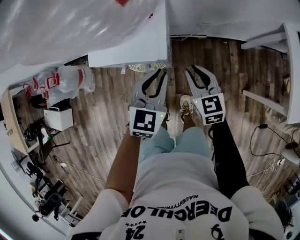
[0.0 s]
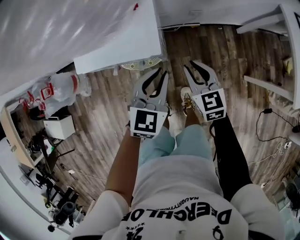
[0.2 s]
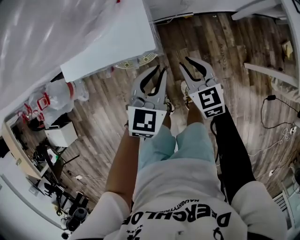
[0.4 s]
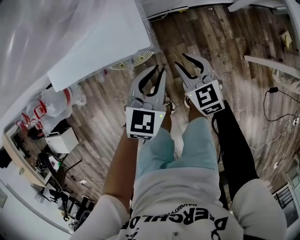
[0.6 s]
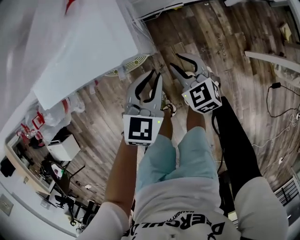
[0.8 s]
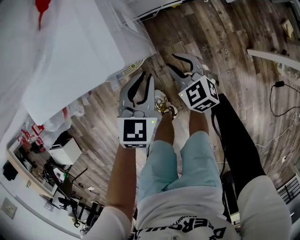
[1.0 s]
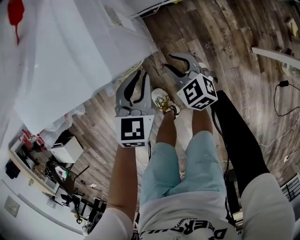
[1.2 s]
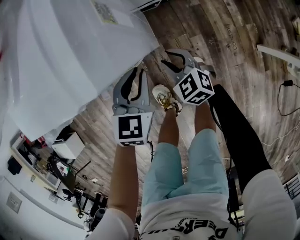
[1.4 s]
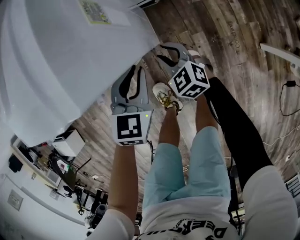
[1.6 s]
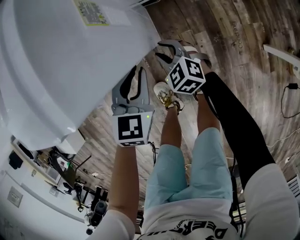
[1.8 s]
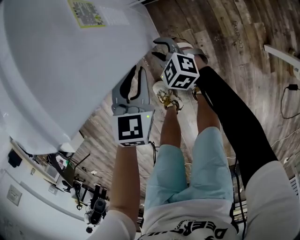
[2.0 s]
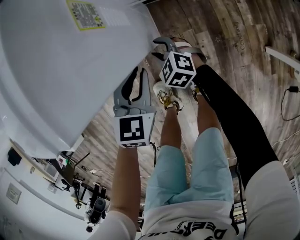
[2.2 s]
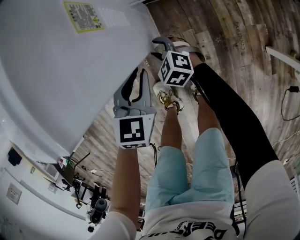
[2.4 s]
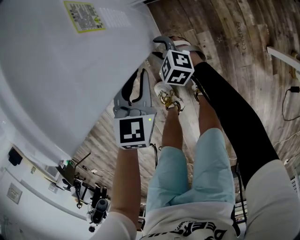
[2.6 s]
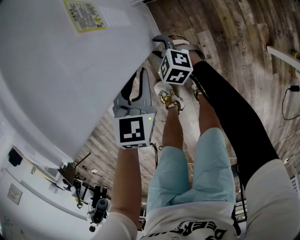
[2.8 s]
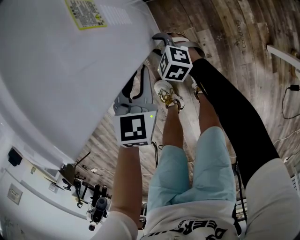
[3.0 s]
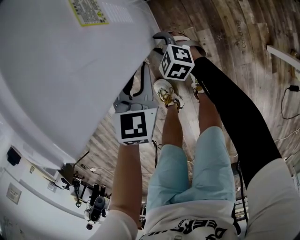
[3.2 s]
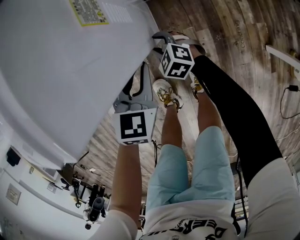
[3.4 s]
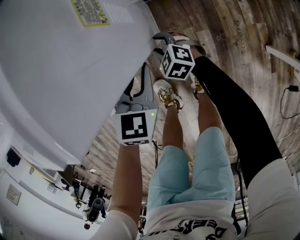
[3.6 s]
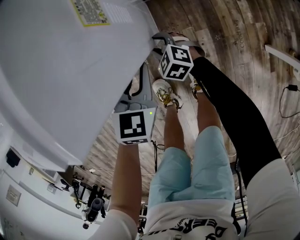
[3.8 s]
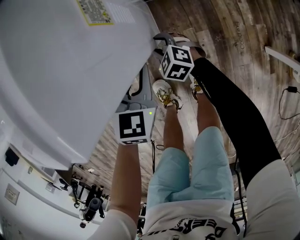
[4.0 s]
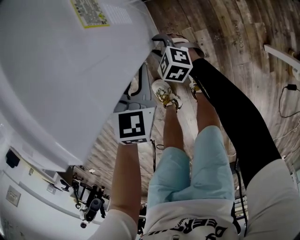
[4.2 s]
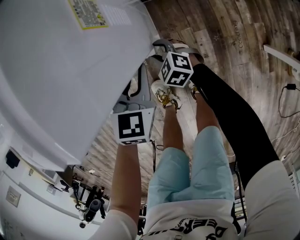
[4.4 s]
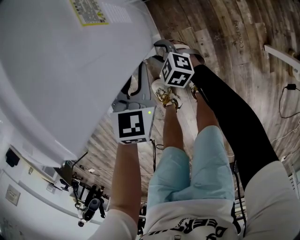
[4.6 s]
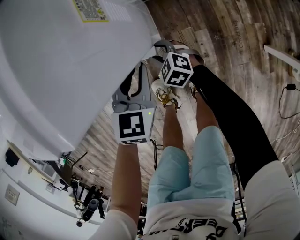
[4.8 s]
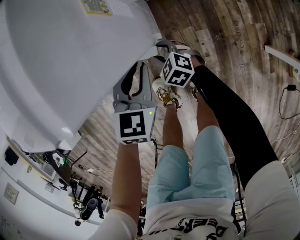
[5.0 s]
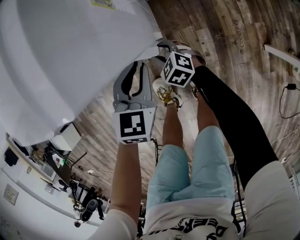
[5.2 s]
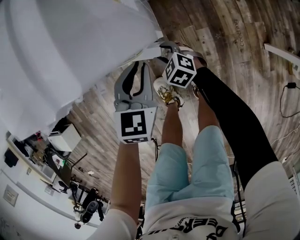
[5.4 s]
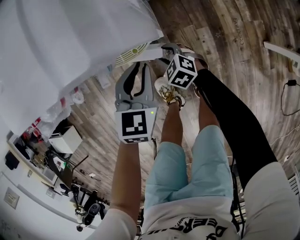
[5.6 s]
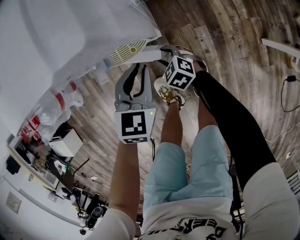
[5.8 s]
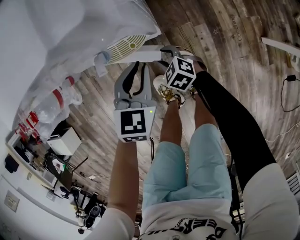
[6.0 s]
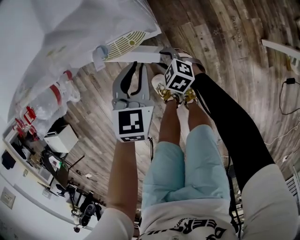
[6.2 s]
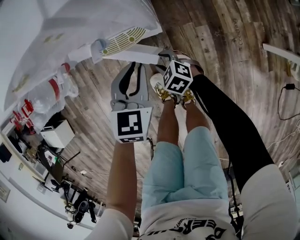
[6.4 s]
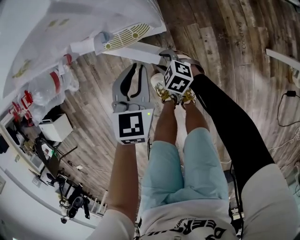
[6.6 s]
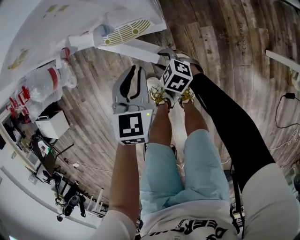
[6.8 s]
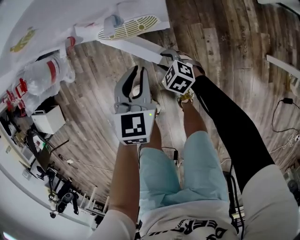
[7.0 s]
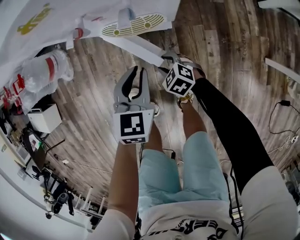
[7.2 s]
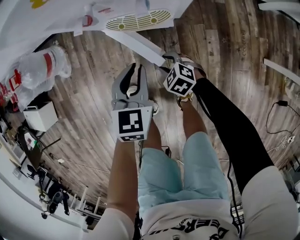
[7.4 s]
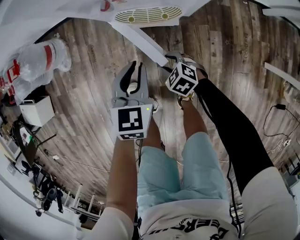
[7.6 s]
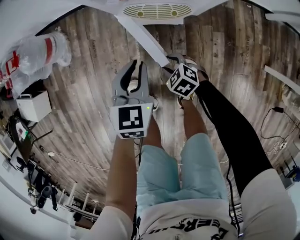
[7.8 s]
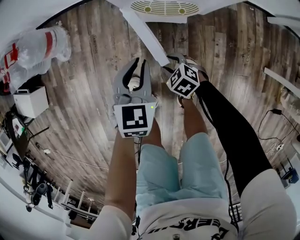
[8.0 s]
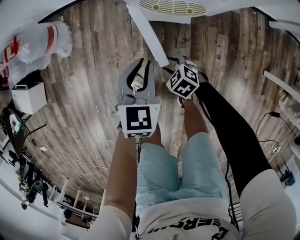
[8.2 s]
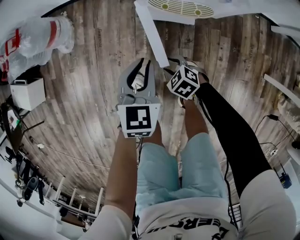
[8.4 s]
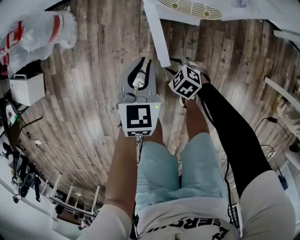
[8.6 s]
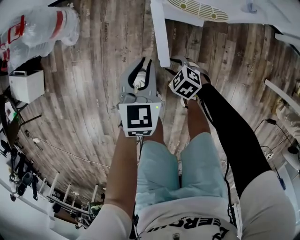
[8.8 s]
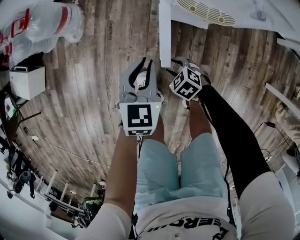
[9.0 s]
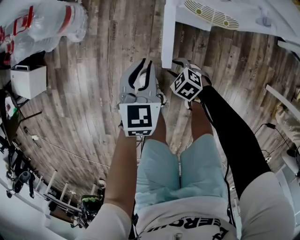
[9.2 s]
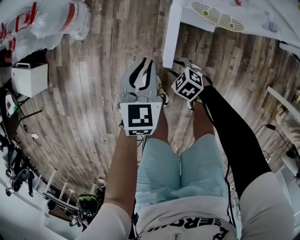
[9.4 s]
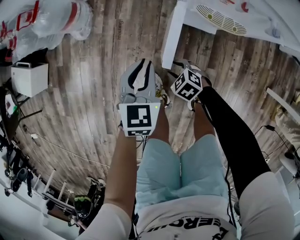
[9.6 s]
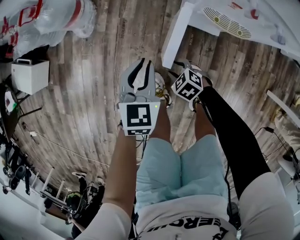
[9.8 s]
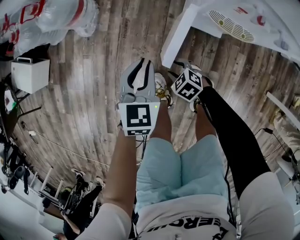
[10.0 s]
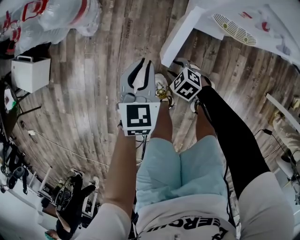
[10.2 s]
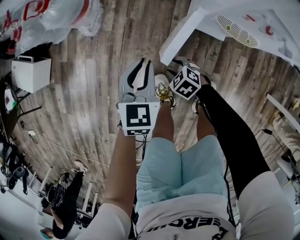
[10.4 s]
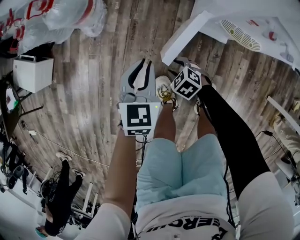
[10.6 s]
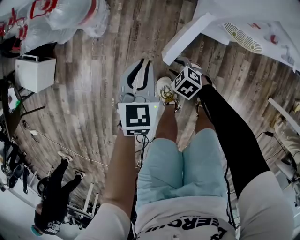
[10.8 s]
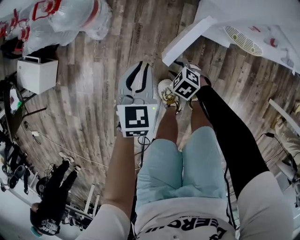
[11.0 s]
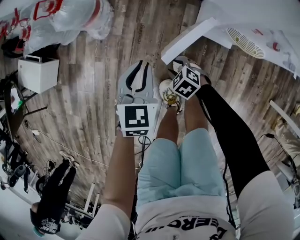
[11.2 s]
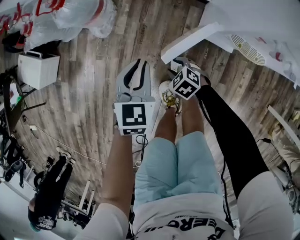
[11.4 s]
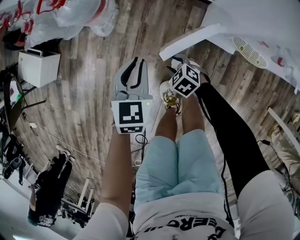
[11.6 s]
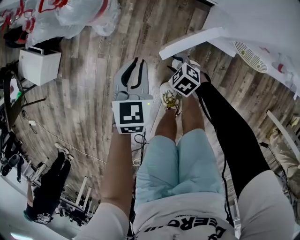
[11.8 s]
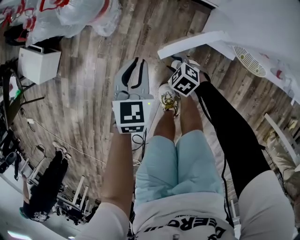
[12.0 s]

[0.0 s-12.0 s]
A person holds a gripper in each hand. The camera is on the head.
0.0 to 1.6 s: The grippers both shift downward by roughly 30 cm. The right gripper swivels some 20 degrees.
1.6 to 3.0 s: The right gripper goes some 10 cm downward.
3.0 to 4.4 s: The grippers stay close to where they were, moving slightly.
4.4 to 6.0 s: The grippers both shift backward by some 5 cm.
6.0 to 7.6 s: The left gripper shifts about 15 cm to the left. Meanwhile the right gripper shifts roughly 10 cm to the left and backward.
7.6 to 9.0 s: The grippers both shift to the left by approximately 15 cm.
9.0 to 10.4 s: Both grippers travel together to the left and forward, roughly 15 cm.
10.4 to 12.0 s: The two grippers go about 10 cm forward.

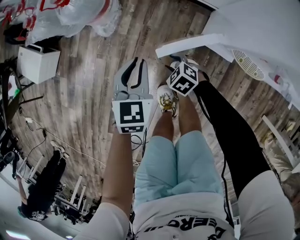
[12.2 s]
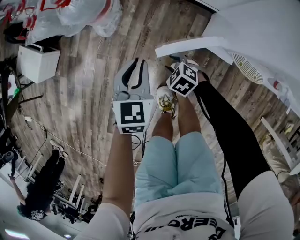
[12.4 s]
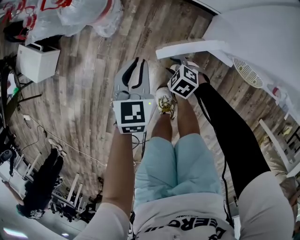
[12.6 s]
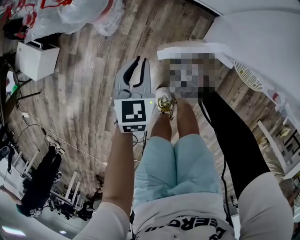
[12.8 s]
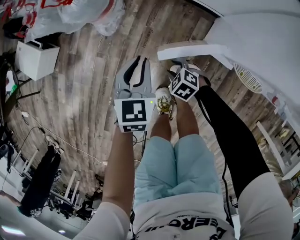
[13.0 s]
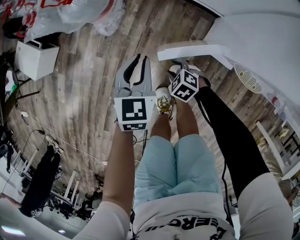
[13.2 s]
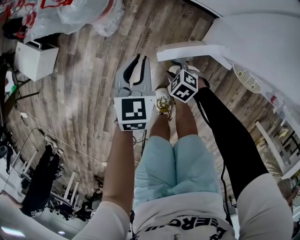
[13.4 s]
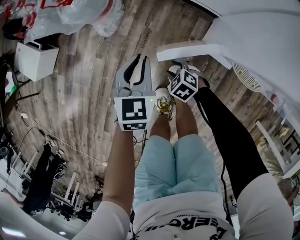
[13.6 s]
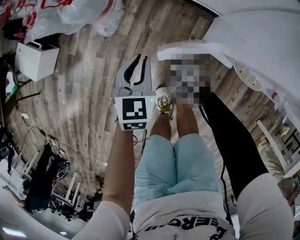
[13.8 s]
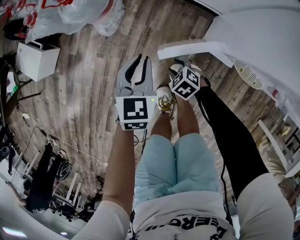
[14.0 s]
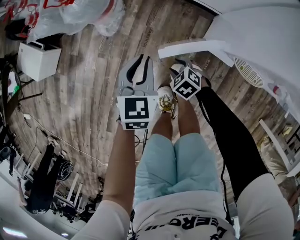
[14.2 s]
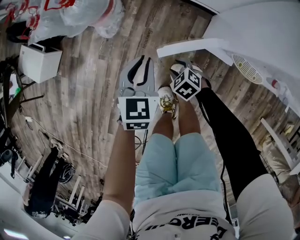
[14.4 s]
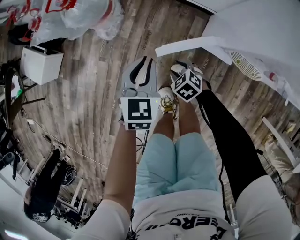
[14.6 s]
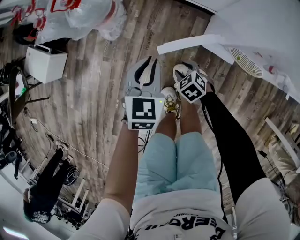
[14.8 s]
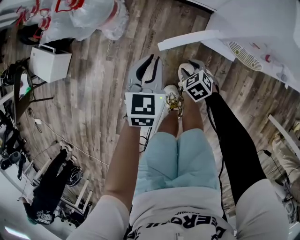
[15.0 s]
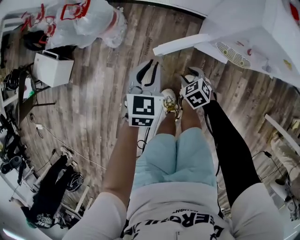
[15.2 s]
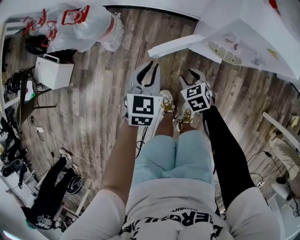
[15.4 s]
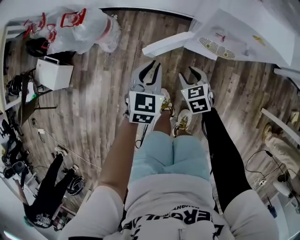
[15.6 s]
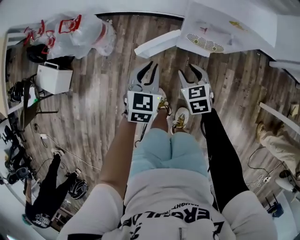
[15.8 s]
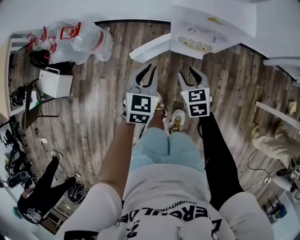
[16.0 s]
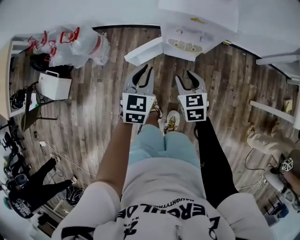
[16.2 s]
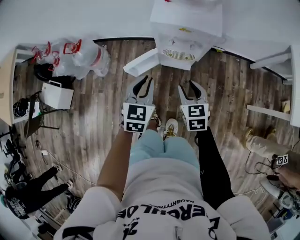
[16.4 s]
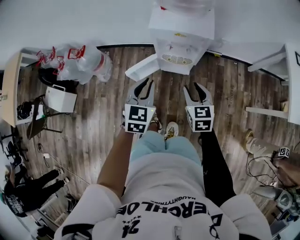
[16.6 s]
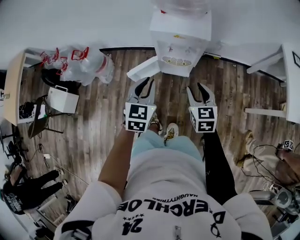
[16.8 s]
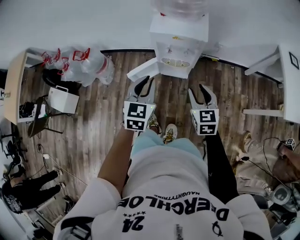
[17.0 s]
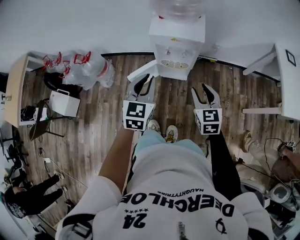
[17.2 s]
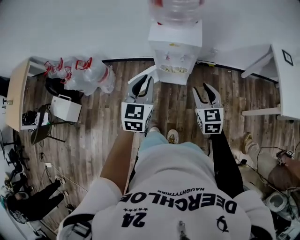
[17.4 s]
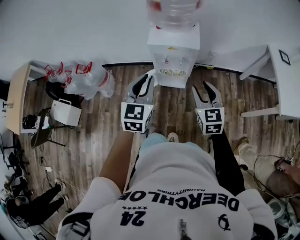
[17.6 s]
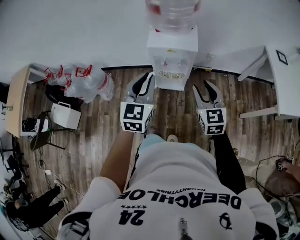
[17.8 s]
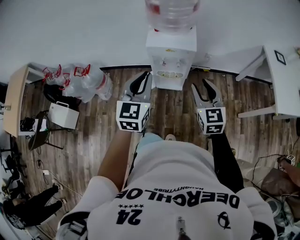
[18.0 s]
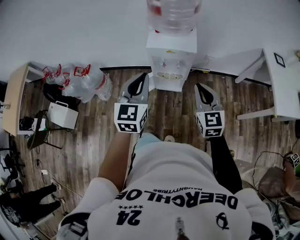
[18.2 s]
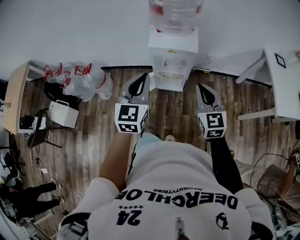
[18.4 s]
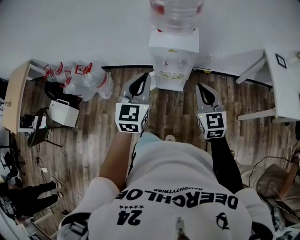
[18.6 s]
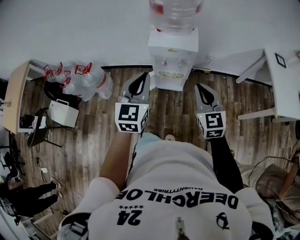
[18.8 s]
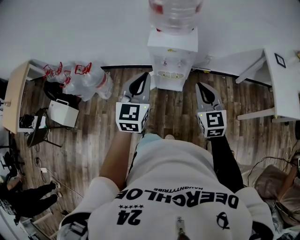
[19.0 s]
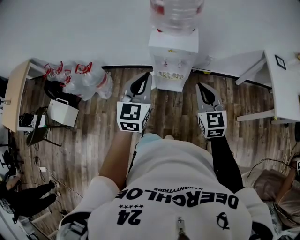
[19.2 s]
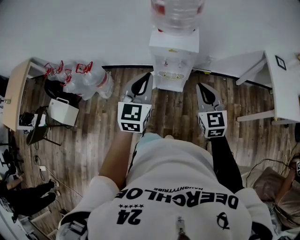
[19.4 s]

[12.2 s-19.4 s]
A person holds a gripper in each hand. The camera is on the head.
12.2 to 13.6 s: There are only small adjustments of the grippers.
13.6 to 15.0 s: Both grippers travel together backward, roughly 5 cm. The right gripper changes its angle by about 20 degrees.
15.0 to 16.6 s: The left gripper shifts by roughly 35 cm; the right gripper heads upward, covering roughly 40 cm, and angles its fingers upward, by roughly 30 degrees.
16.6 to 18.0 s: Both grippers move upward, roughly 20 cm. The right gripper changes its angle by approximately 20 degrees.
18.0 to 19.4 s: The right gripper closes.

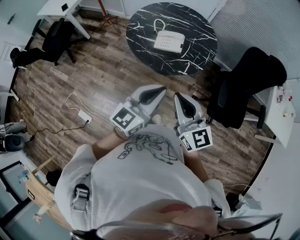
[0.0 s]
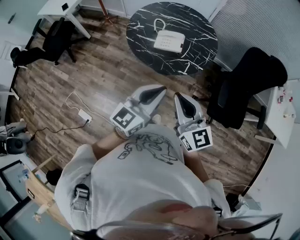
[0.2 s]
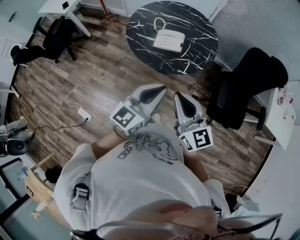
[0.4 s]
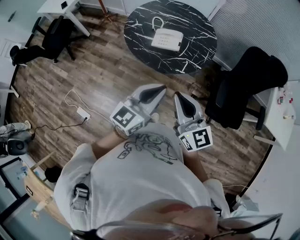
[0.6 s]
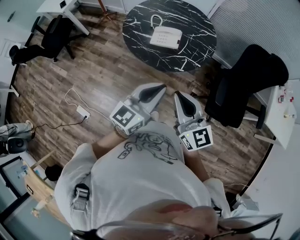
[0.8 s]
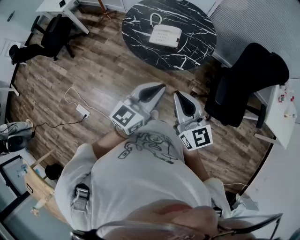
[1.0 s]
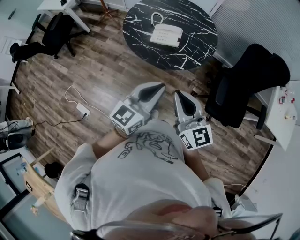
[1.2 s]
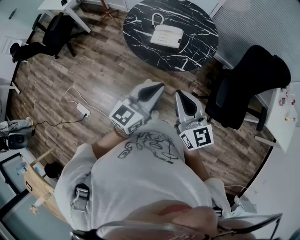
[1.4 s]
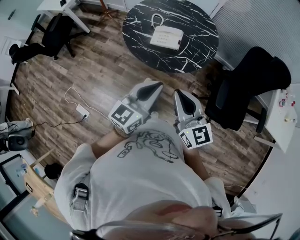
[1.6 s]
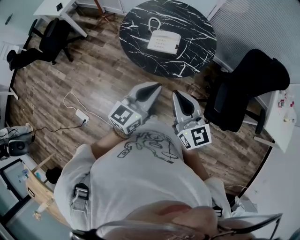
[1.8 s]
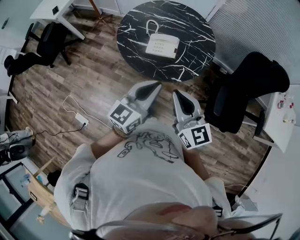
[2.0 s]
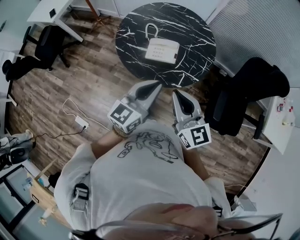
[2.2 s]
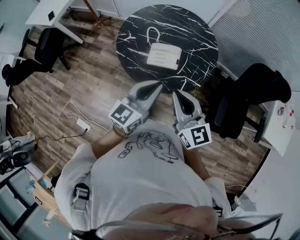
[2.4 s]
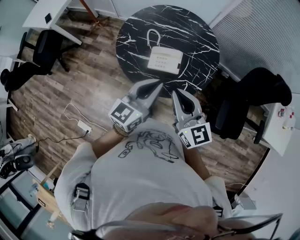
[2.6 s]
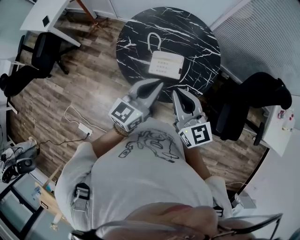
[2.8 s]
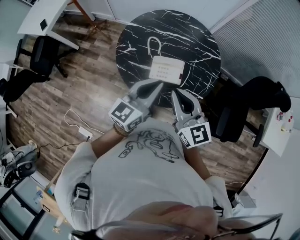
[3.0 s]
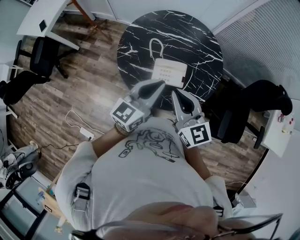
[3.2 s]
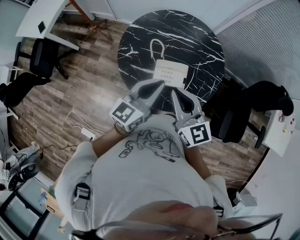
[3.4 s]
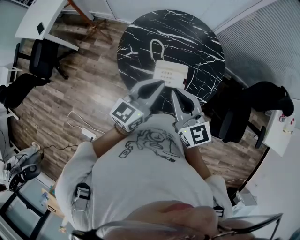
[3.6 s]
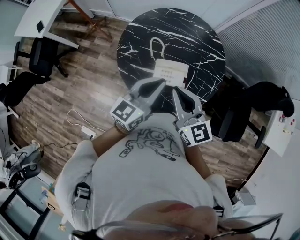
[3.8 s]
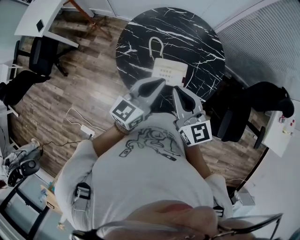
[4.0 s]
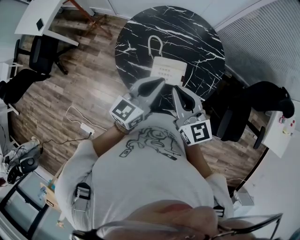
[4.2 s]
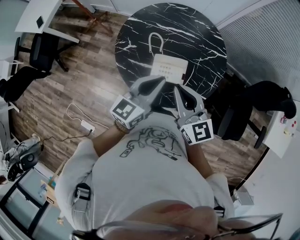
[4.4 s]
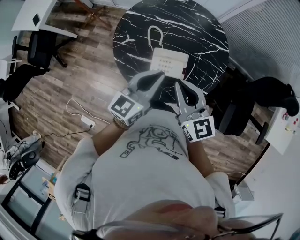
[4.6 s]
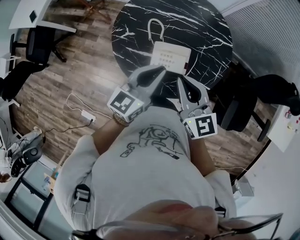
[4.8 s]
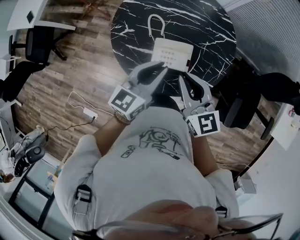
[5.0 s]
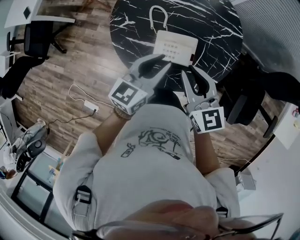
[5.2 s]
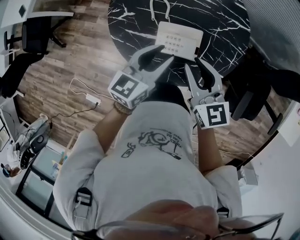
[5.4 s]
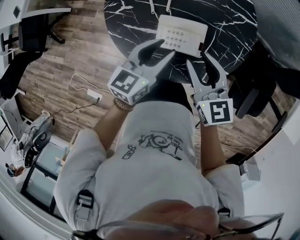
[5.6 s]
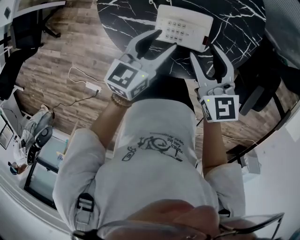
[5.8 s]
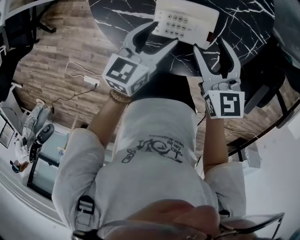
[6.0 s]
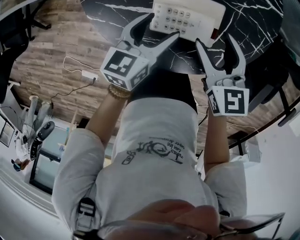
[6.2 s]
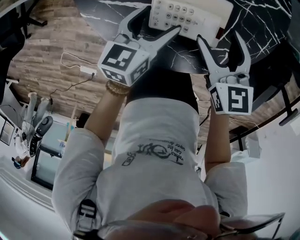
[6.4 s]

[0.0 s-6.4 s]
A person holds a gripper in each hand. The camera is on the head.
0.0 to 1.6 s: The right gripper moves roughly 5 cm. The left gripper changes place by approximately 5 cm.
1.6 to 3.2 s: The two grippers go about 35 cm forward.
3.2 to 4.8 s: The right gripper travels downward and forward by some 10 cm, while the left gripper is displaced downward by roughly 5 cm.
4.8 to 6.4 s: Both grippers move downward, roughly 30 cm. The left gripper swivels approximately 30 degrees, and opens up; the right gripper rotates about 20 degrees, and opens its fingers.
